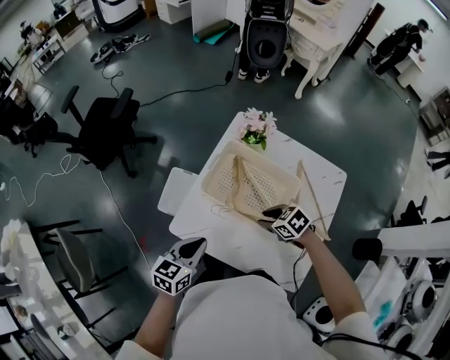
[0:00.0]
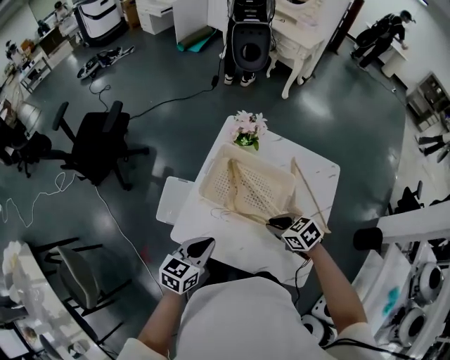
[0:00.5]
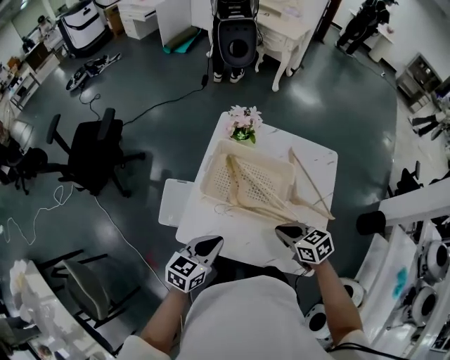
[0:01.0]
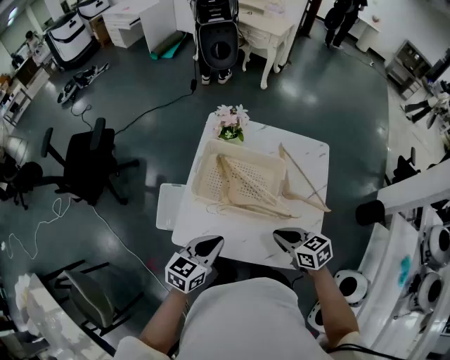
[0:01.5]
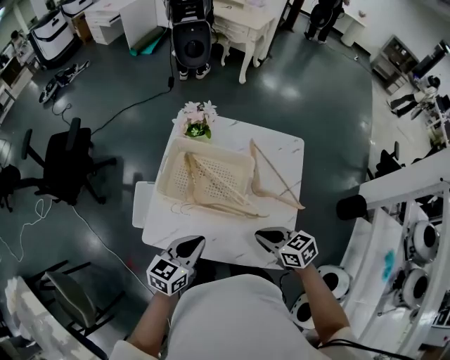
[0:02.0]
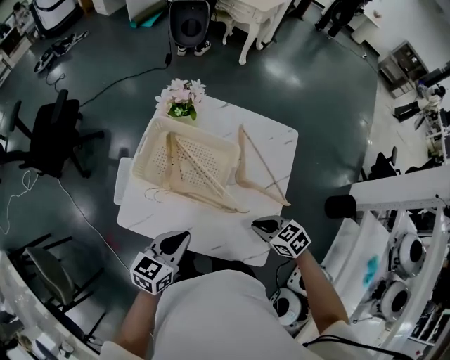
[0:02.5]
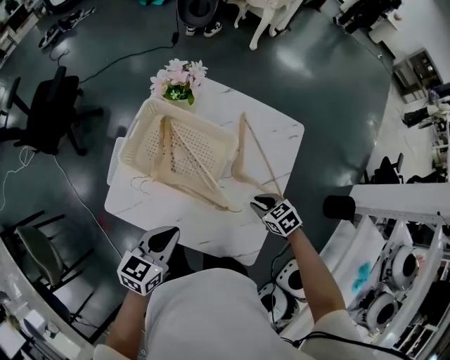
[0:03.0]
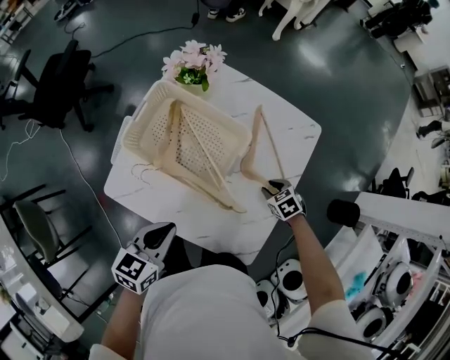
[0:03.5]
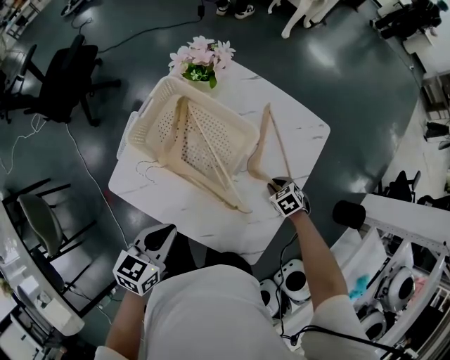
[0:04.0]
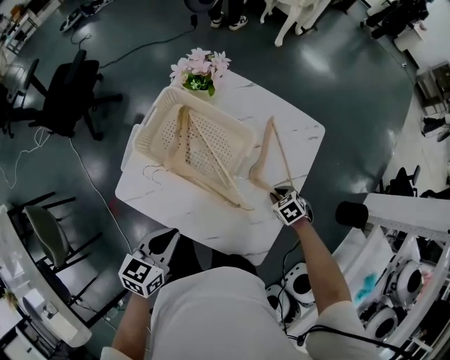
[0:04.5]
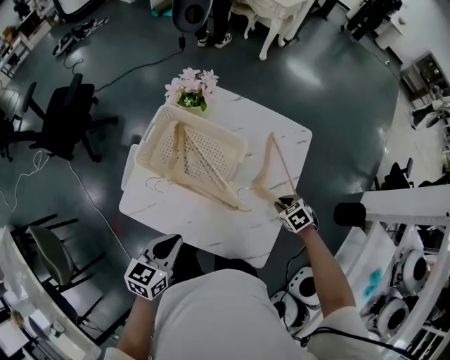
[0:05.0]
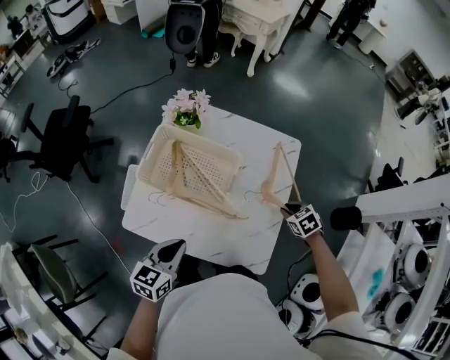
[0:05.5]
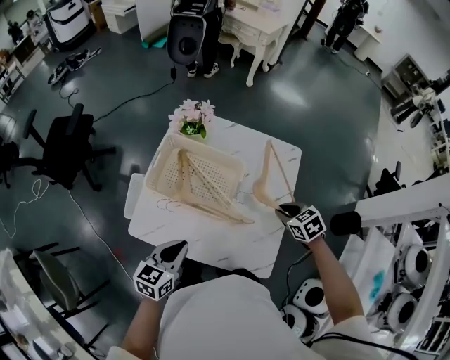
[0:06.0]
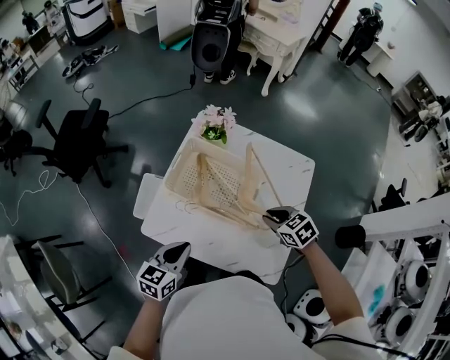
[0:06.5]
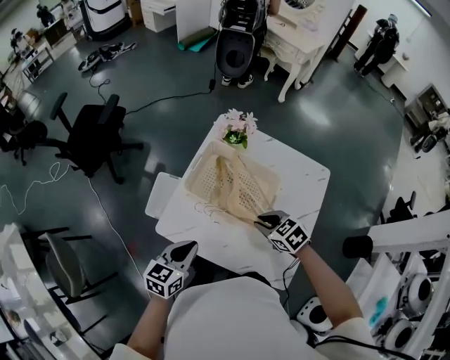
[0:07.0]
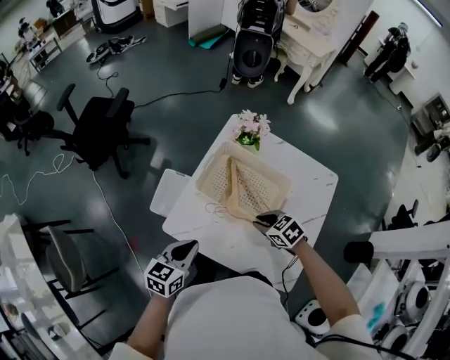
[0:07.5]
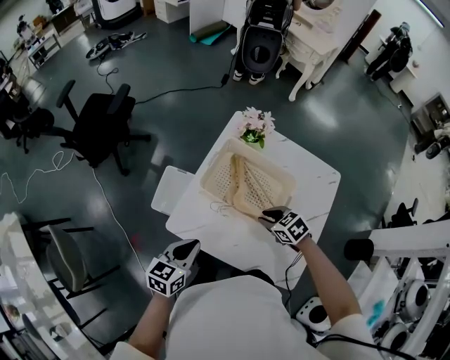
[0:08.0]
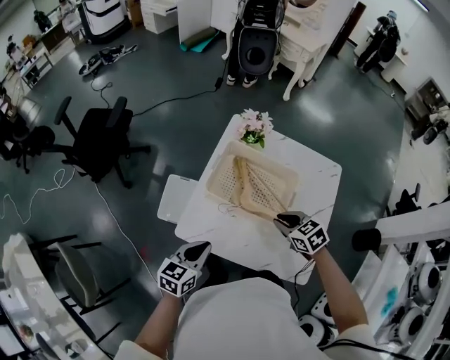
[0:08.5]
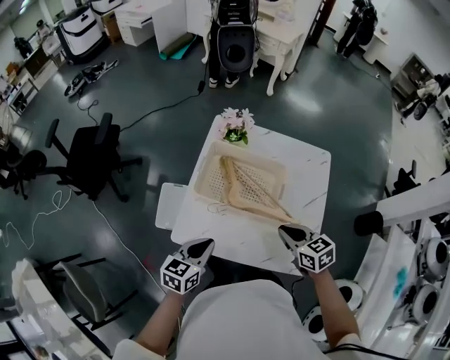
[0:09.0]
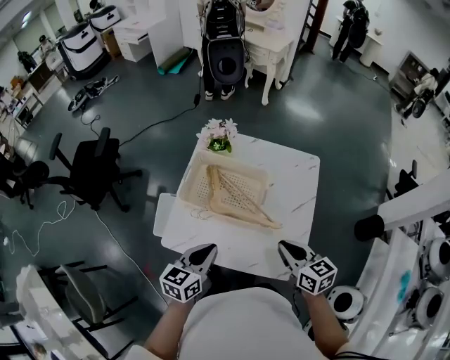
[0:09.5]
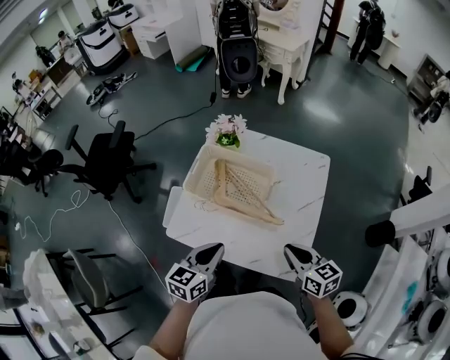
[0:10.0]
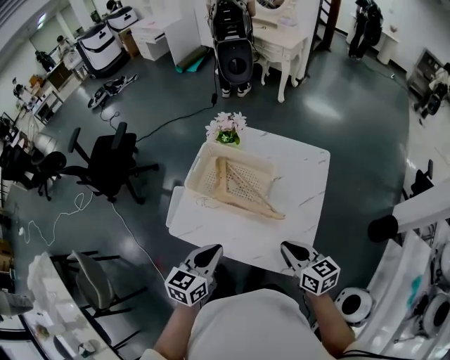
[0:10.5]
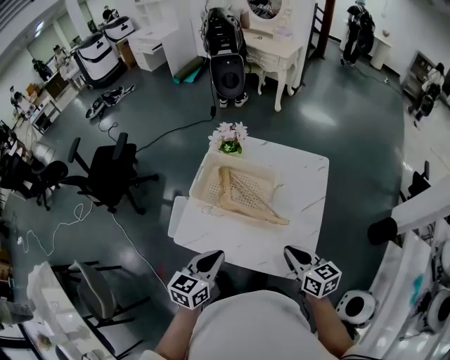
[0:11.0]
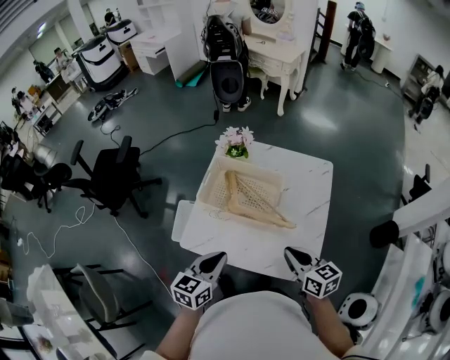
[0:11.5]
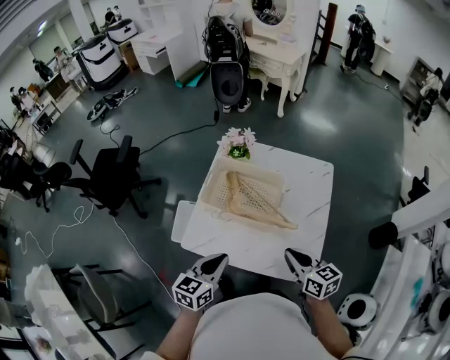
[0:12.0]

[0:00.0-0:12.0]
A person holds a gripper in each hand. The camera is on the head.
0:00.0 to 0:02.0: The right gripper shifts by some 15 cm, turns by about 40 degrees, and closes. The left gripper shifts by some 10 cm.
0:02.0 to 0:04.0: The right gripper is displaced downward, to the right and forward by roughly 35 cm, and angles its fingers downward, by about 40 degrees. Meanwhile the left gripper is displaced downward by some 5 cm, and turns by approximately 20 degrees.
0:04.0 to 0:06.0: The right gripper travels upward by some 20 cm, and rotates roughly 20 degrees, while the left gripper moves some 5 cm.
0:06.0 to 0:08.0: The right gripper is displaced to the left by about 25 cm, and changes its angle by approximately 20 degrees. Meanwhile the left gripper travels to the left by roughly 15 cm.
0:08.0 to 0:10.0: The left gripper goes approximately 15 cm to the right and upward; the right gripper goes about 25 cm backward, to the right and upward, and tips its fingers upward by some 30 degrees.
0:10.0 to 0:12.0: Both grippers move to the left, some 5 cm.

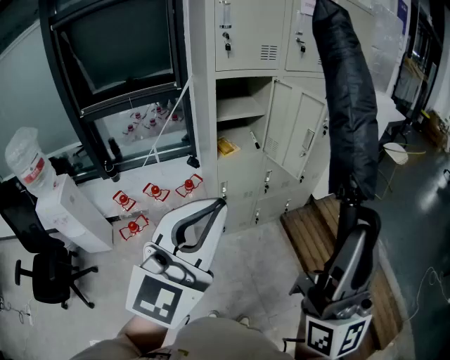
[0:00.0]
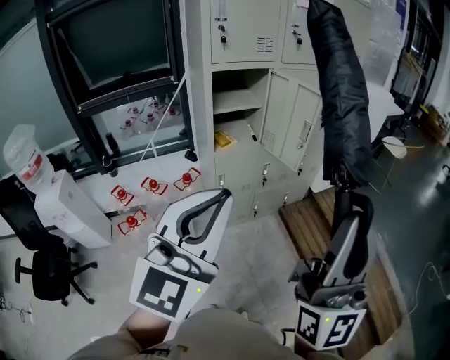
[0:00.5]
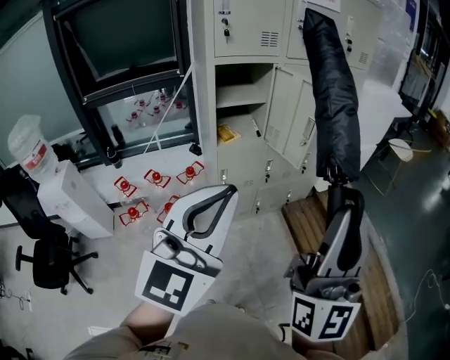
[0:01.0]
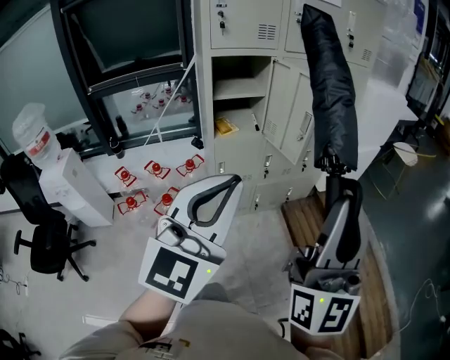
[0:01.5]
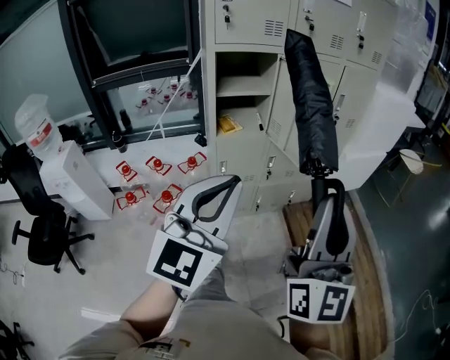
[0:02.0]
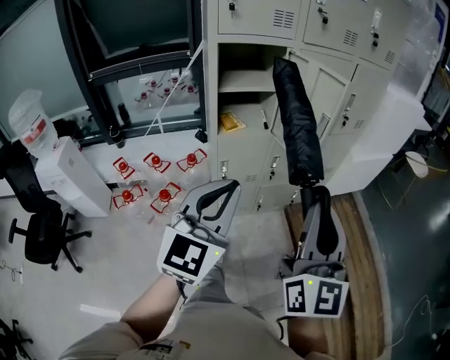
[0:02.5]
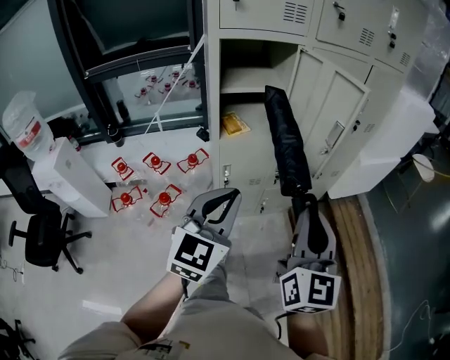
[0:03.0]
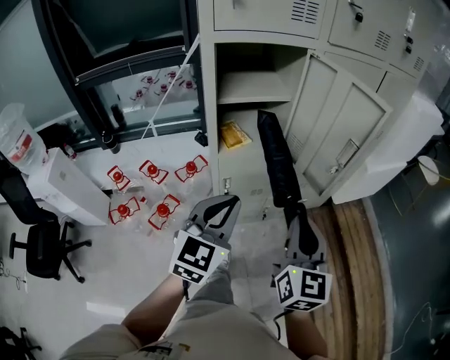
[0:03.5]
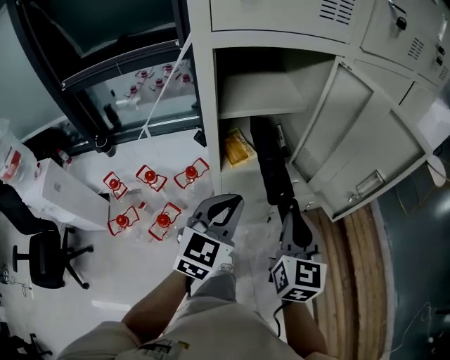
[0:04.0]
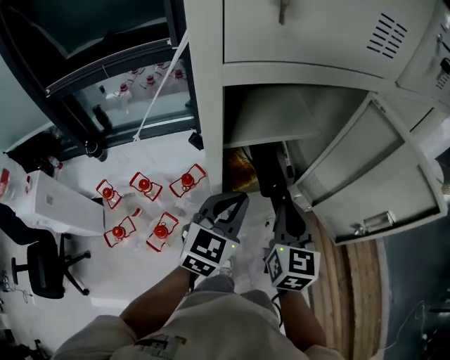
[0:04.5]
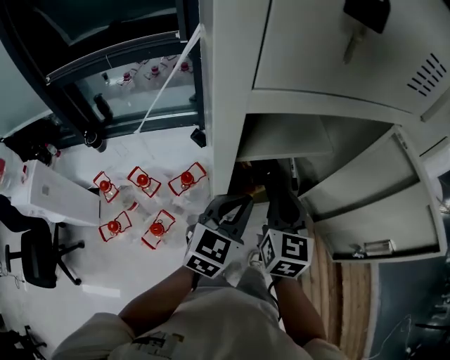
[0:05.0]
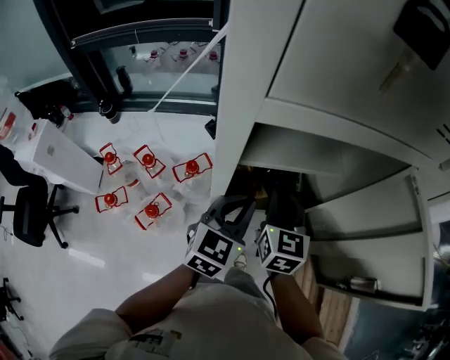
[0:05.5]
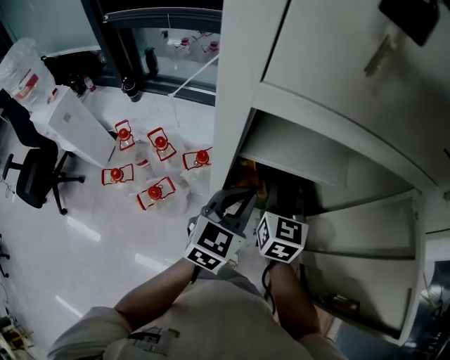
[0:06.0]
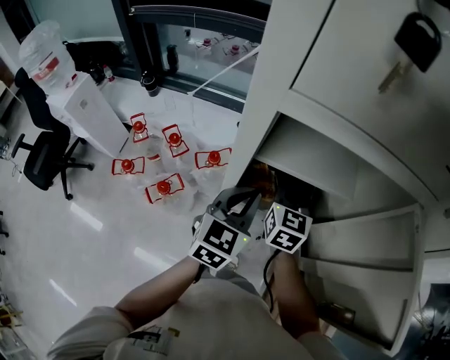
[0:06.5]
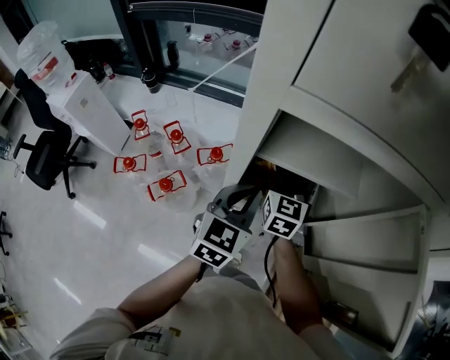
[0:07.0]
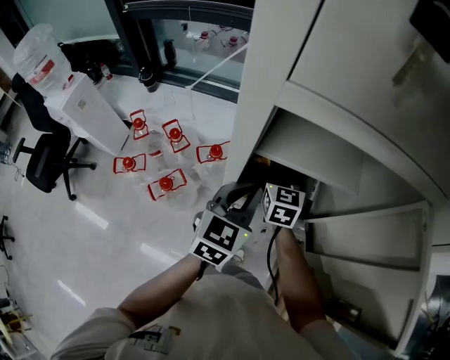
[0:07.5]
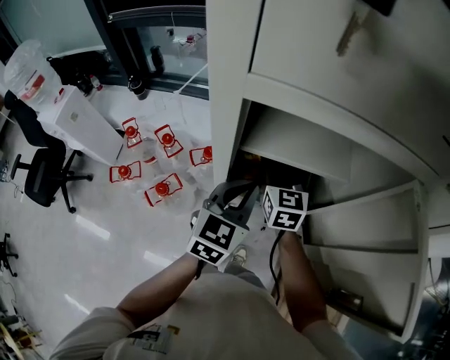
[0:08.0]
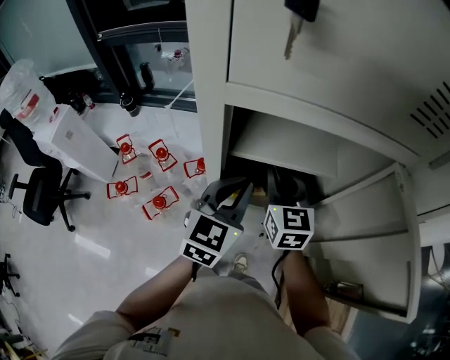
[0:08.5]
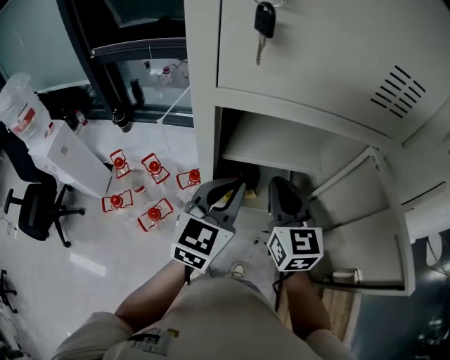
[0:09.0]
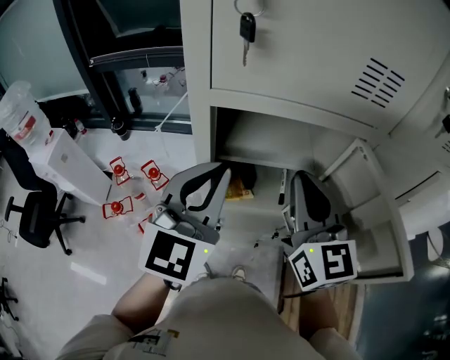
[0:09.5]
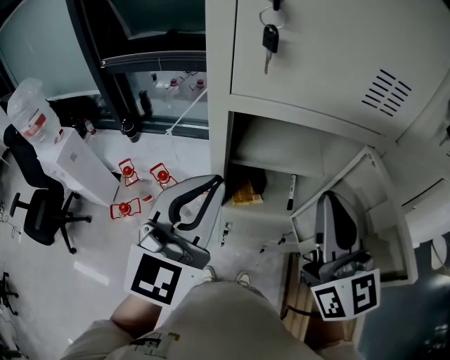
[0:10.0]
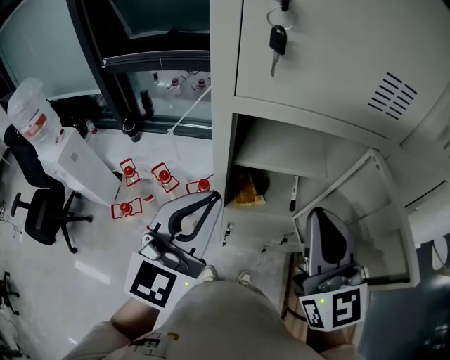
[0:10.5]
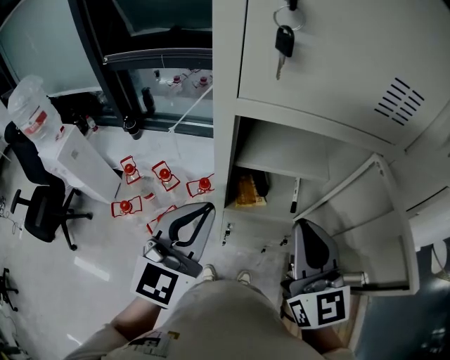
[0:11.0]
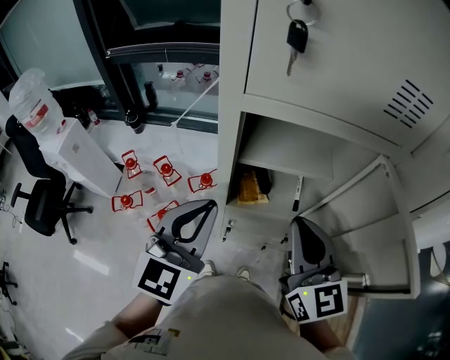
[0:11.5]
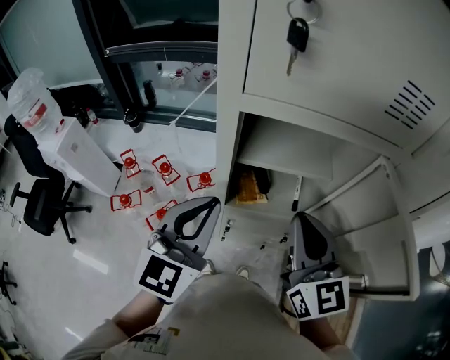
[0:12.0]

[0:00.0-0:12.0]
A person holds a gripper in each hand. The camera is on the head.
0:00.0 to 0:02.0: The left gripper shifts about 15 cm to the right, forward and downward; the right gripper moves forward and downward, some 15 cm.
0:02.0 to 0:04.0: The right gripper heads forward, downward and to the left, covering roughly 50 cm, and points its fingers some 40 degrees further downward. The left gripper is displaced forward and downward by roughly 40 cm, and rotates roughly 30 degrees.
0:04.0 to 0:06.0: The right gripper travels forward and to the left by roughly 30 cm, and rotates some 20 degrees, while the left gripper shifts some 15 cm forward, and changes its angle by roughly 20 degrees.
0:08.0 to 0:10.0: The two grippers go roughly 30 cm upward and backward. The right gripper changes its angle by approximately 30 degrees. Meanwhile the left gripper changes its angle by approximately 30 degrees.
0:10.0 to 0:12.0: The grippers both shift downward by roughly 10 cm.

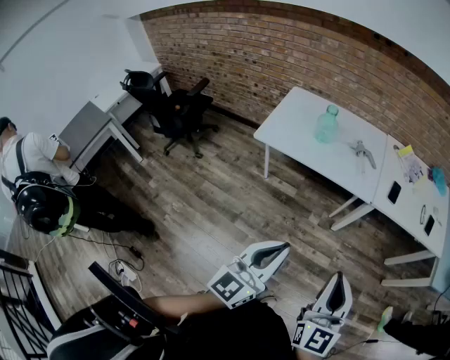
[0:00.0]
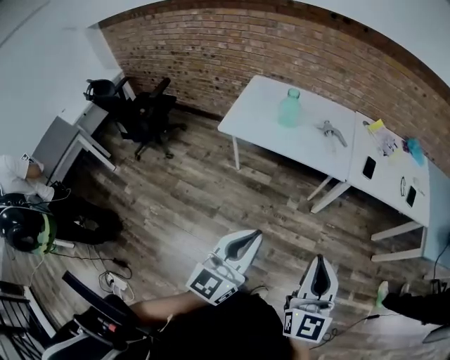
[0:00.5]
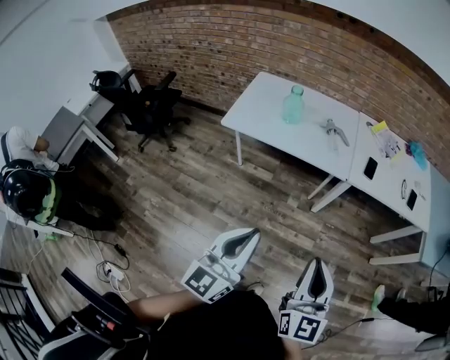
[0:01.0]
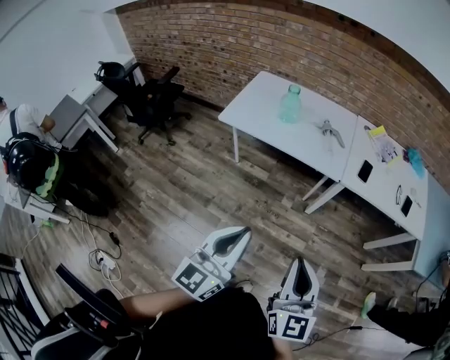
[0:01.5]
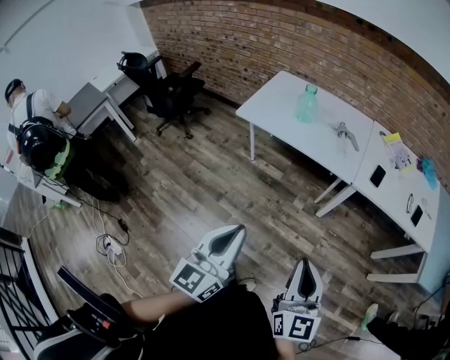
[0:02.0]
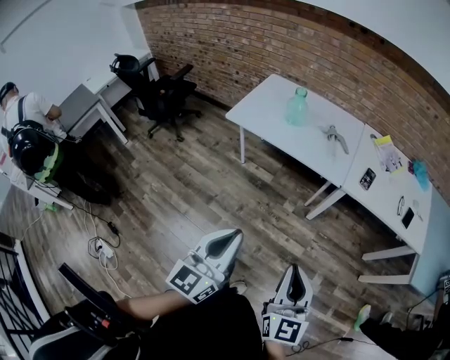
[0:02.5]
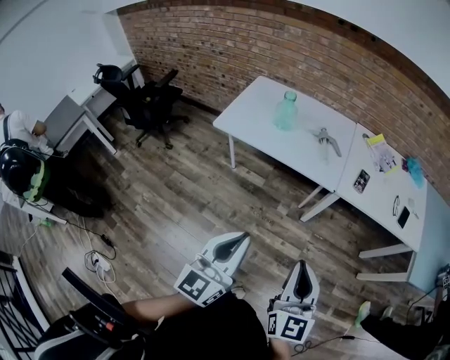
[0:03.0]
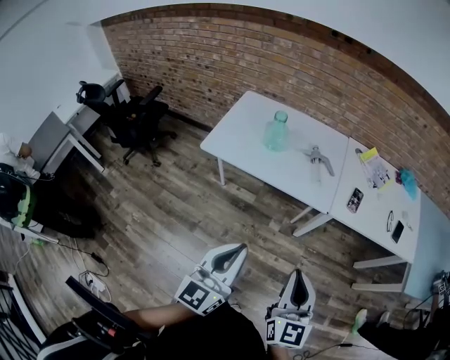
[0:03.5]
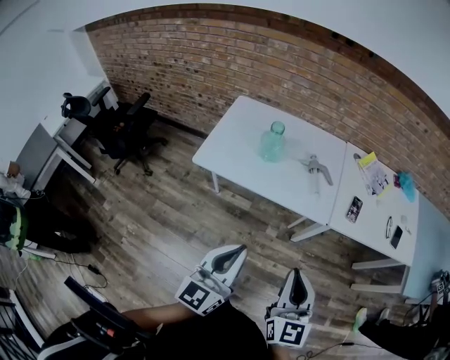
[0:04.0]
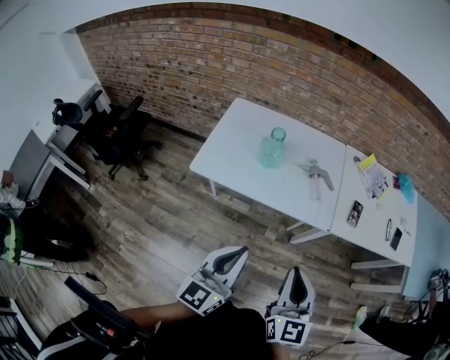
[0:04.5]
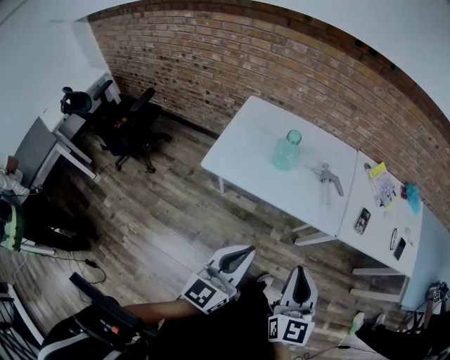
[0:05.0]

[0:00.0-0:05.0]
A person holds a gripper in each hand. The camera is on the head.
0:00.0 to 0:02.5: The right gripper moves to the right and downward, roughly 10 cm, while the left gripper heads to the right, covering roughly 5 cm.
0:02.5 to 0:05.0: The left gripper heads forward, covering approximately 30 cm; the right gripper travels forward and to the left by some 30 cm.
